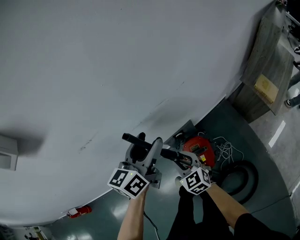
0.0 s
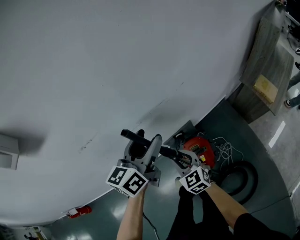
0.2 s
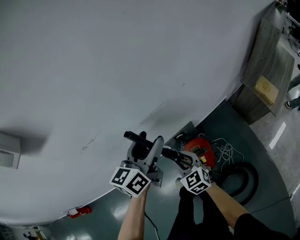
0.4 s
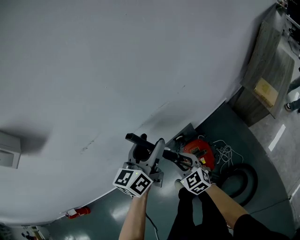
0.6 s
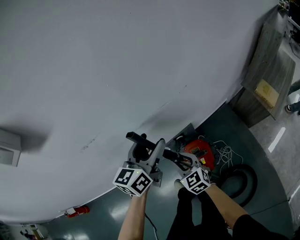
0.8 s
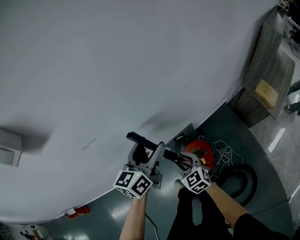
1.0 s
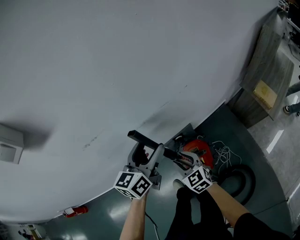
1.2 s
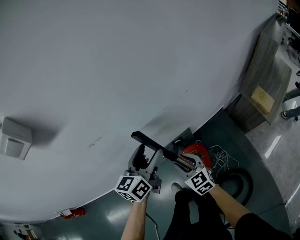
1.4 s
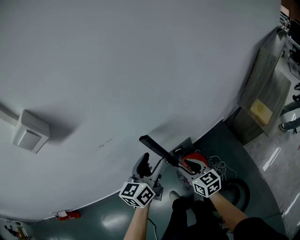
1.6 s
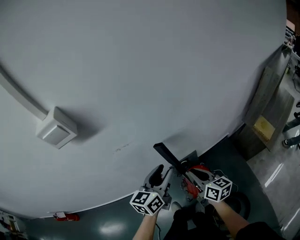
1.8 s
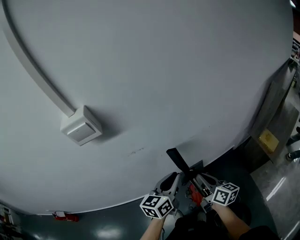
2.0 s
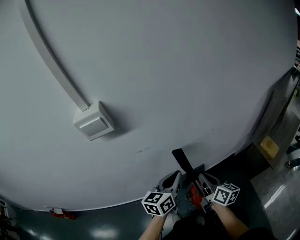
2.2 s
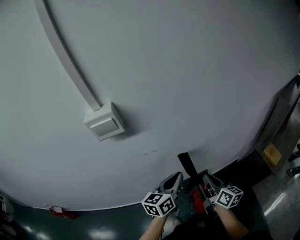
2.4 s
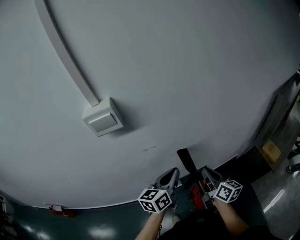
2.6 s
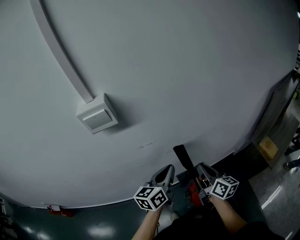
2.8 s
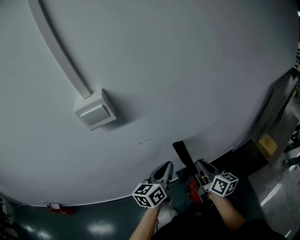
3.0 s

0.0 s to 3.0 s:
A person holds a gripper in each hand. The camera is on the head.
0.0 to 1.6 s: The right gripper shifts about 10 cm upward, and swivels approximately 20 degrees. The left gripper ends up roughly 5 cm from where it was.
1.6 to 3.0 s: The right gripper travels upward by about 15 cm, turns by about 30 degrees, and closes. The left gripper moves to the left and upward, some 10 cm, and closes.

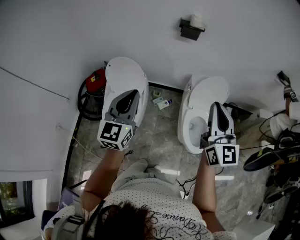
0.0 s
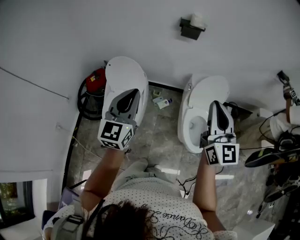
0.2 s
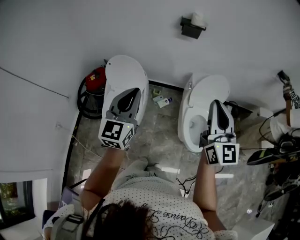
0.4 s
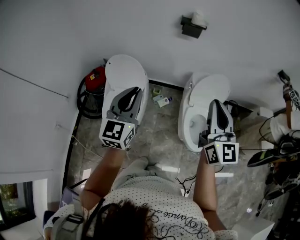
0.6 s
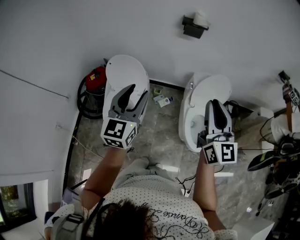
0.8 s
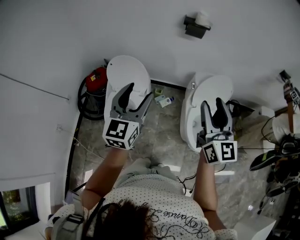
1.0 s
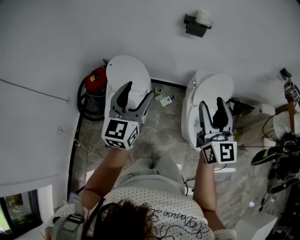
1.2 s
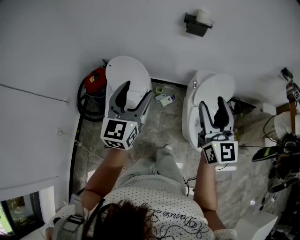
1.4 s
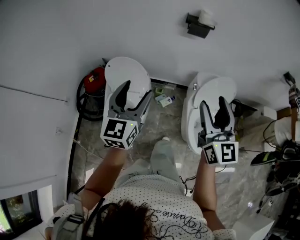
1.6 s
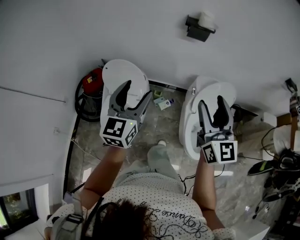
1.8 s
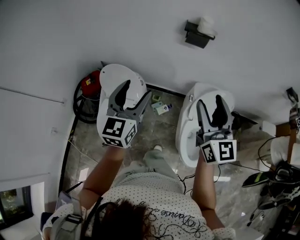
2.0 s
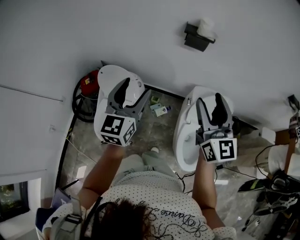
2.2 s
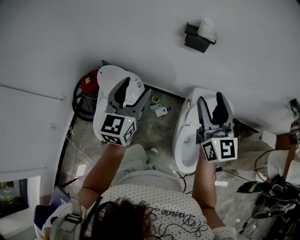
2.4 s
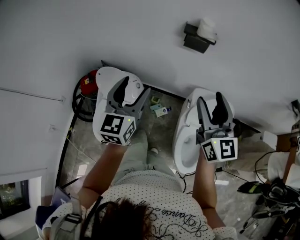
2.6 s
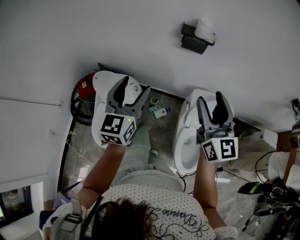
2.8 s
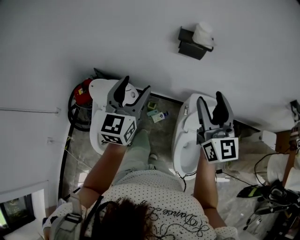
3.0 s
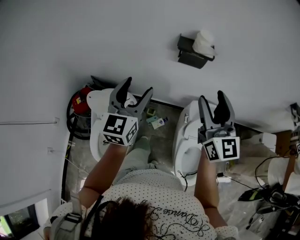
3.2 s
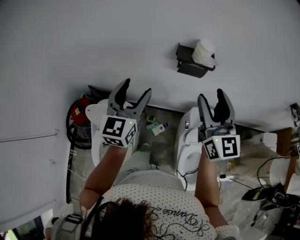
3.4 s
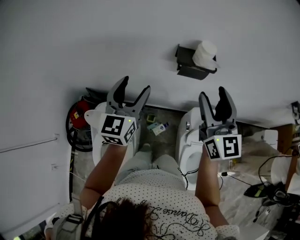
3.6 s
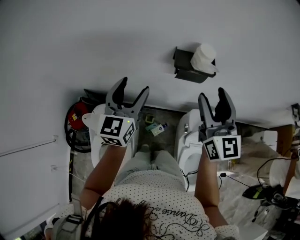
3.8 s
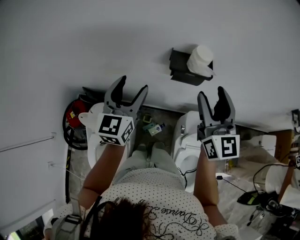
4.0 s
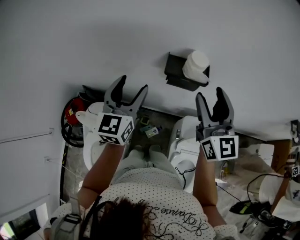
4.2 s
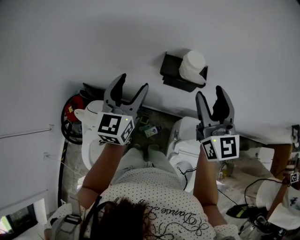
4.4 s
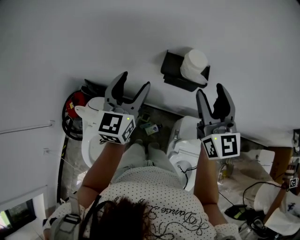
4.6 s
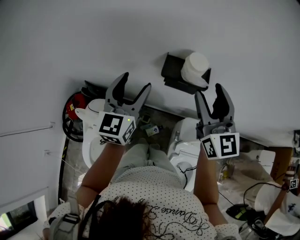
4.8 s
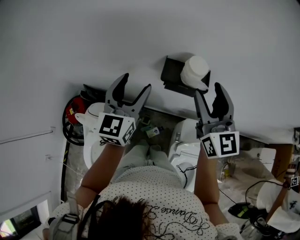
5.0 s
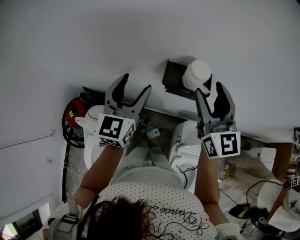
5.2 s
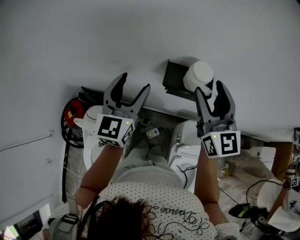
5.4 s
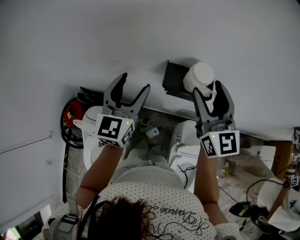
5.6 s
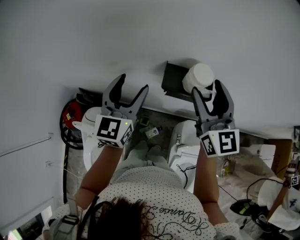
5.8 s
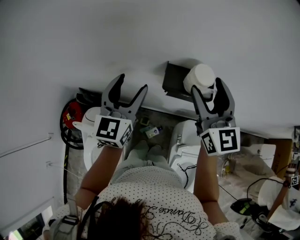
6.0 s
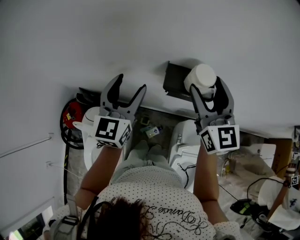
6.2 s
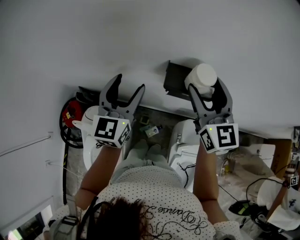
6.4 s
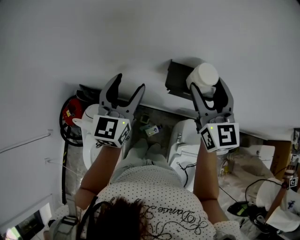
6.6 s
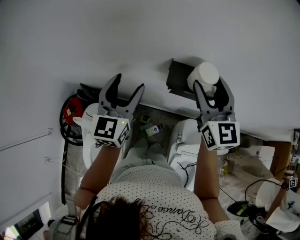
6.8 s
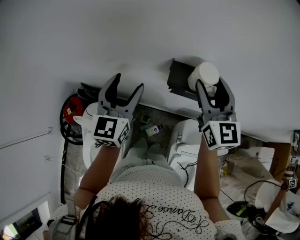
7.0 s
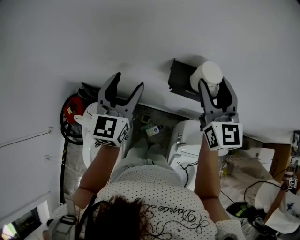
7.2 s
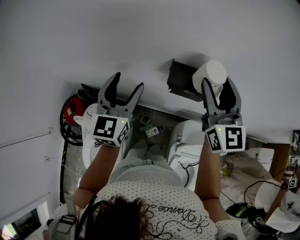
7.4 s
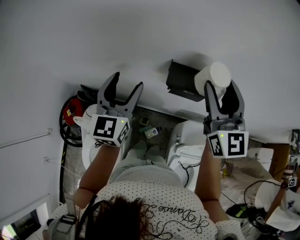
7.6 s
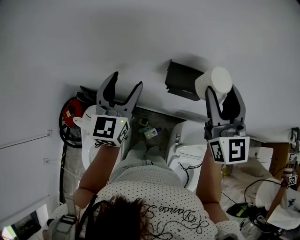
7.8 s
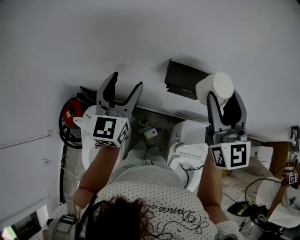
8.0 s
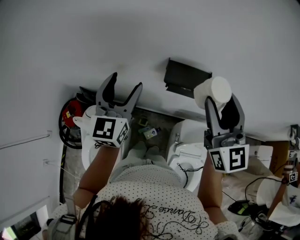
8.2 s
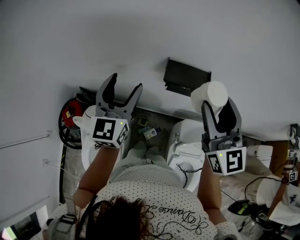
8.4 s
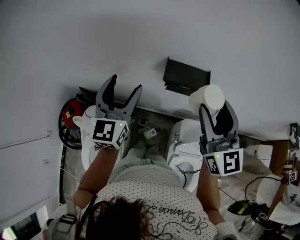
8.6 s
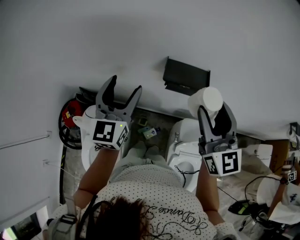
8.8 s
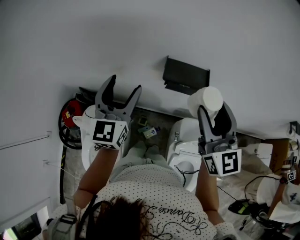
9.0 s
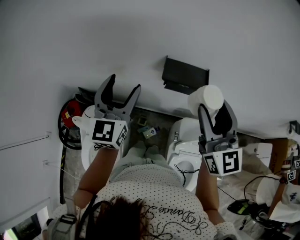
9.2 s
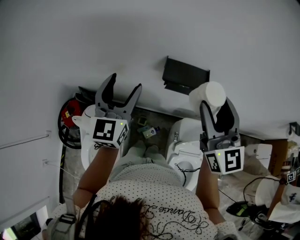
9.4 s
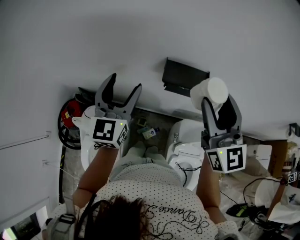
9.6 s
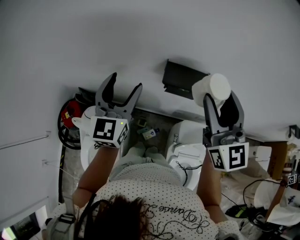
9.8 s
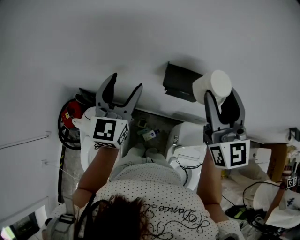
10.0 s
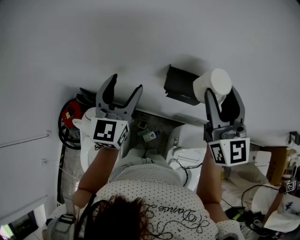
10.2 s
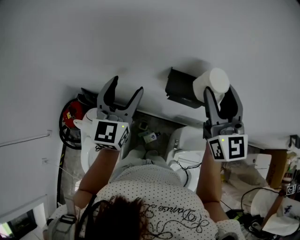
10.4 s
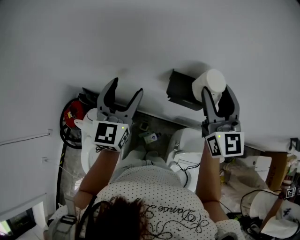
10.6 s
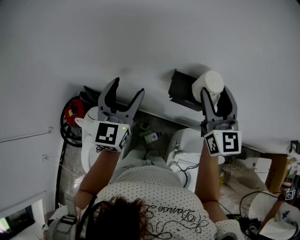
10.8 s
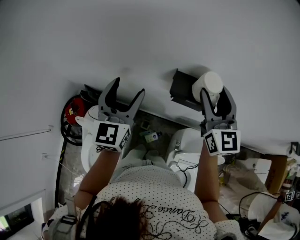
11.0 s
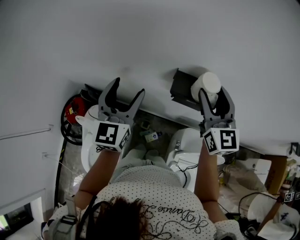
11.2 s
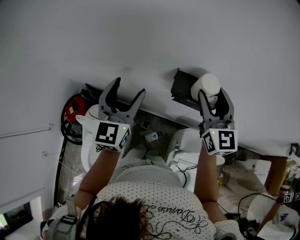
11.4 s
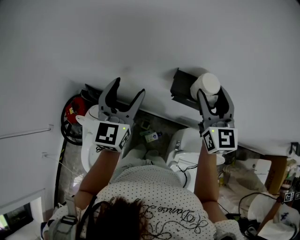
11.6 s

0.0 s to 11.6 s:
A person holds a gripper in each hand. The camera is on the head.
0.0 to 1.4 s: The left gripper is displaced forward by some 10 cm, and opens up. Meanwhile the right gripper goes about 10 cm to the left and forward, and opens up.
1.4 to 2.8 s: Both grippers move forward and to the right, roughly 25 cm.
2.8 to 4.4 s: Both grippers travel together forward, some 25 cm.
4.4 to 5.8 s: Both grippers travel together forward, some 5 cm.
5.8 to 7.2 s: There are only small adjustments of the grippers.
7.2 to 8.8 s: The right gripper heads backward, covering approximately 10 cm.
8.8 to 10.2 s: The right gripper moves forward, roughly 5 cm.
10.2 to 11.6 s: The right gripper moves downward and forward, some 10 cm.

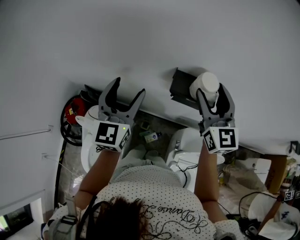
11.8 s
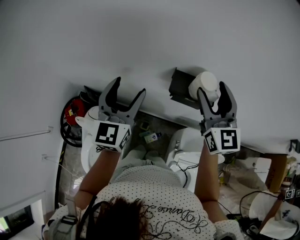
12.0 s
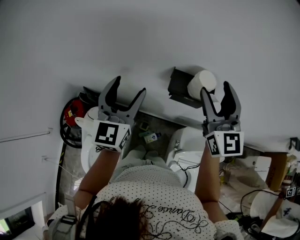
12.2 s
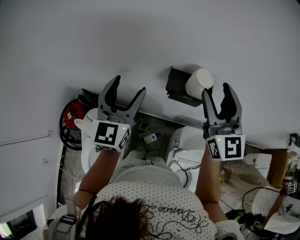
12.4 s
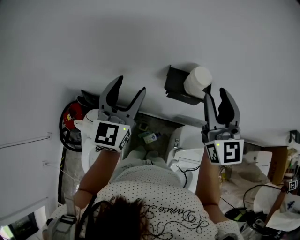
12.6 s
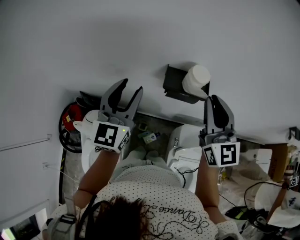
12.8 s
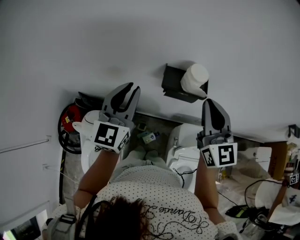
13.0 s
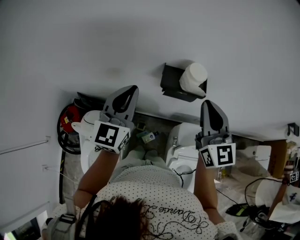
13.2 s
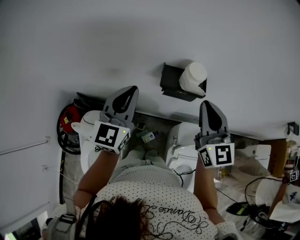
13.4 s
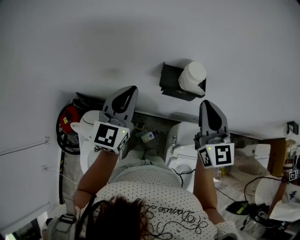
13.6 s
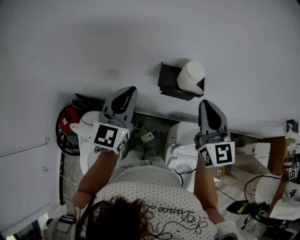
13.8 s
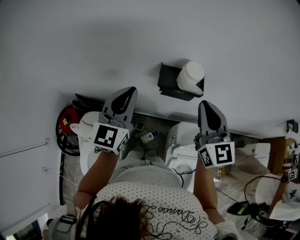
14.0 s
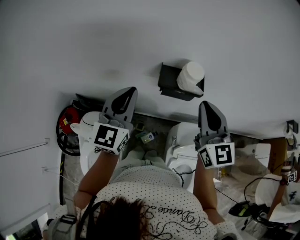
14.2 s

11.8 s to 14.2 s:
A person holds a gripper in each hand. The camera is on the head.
11.8 to 13.0 s: The left gripper closes. Meanwhile the right gripper is displaced backward by about 10 cm, and closes.
13.0 to 14.2 s: The grippers make only small movements.

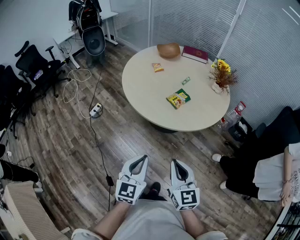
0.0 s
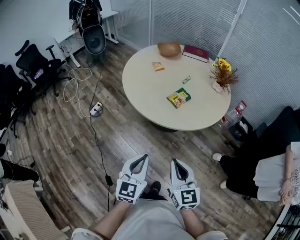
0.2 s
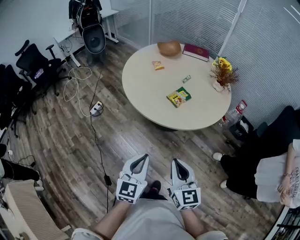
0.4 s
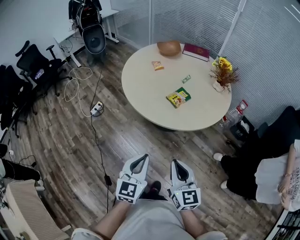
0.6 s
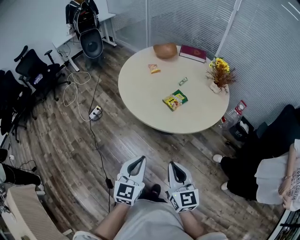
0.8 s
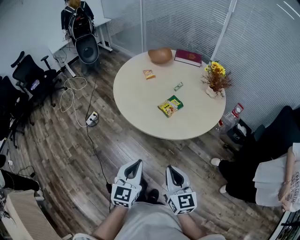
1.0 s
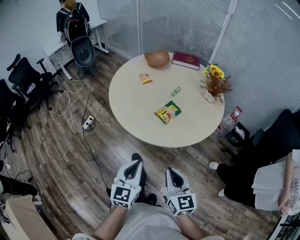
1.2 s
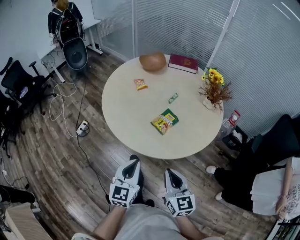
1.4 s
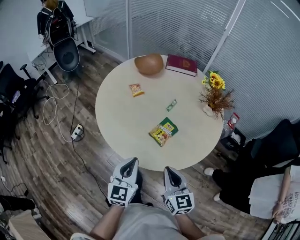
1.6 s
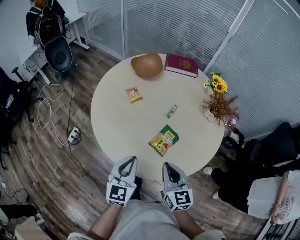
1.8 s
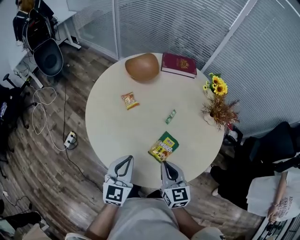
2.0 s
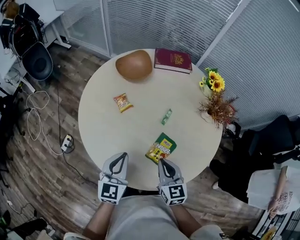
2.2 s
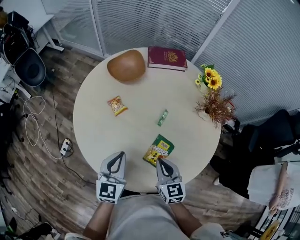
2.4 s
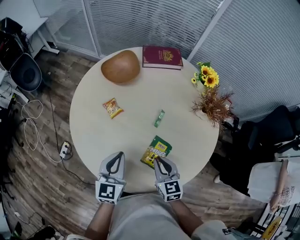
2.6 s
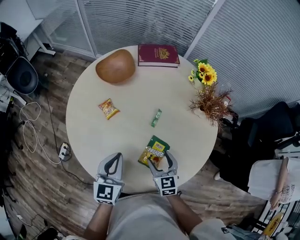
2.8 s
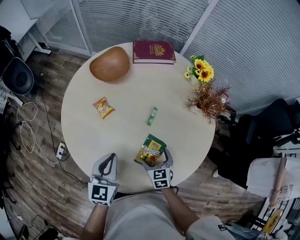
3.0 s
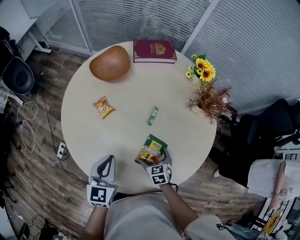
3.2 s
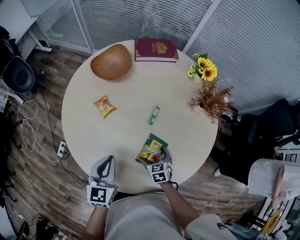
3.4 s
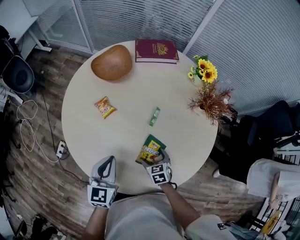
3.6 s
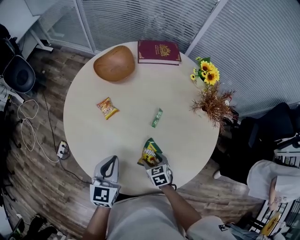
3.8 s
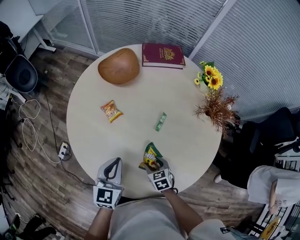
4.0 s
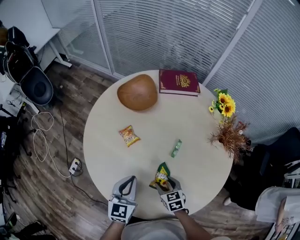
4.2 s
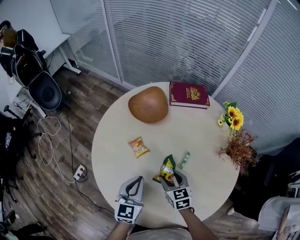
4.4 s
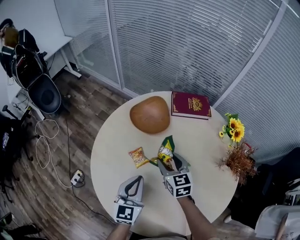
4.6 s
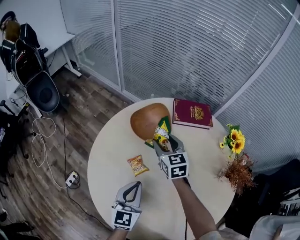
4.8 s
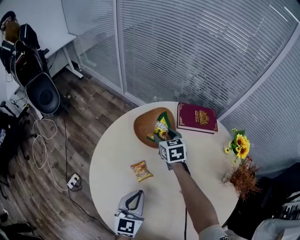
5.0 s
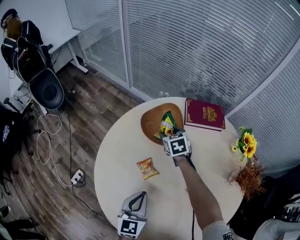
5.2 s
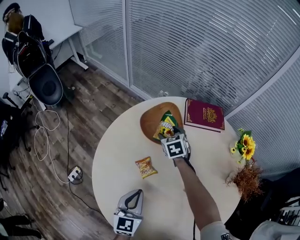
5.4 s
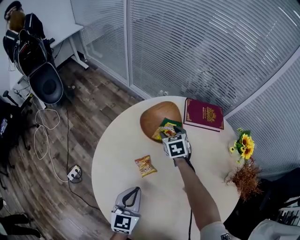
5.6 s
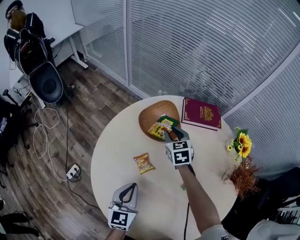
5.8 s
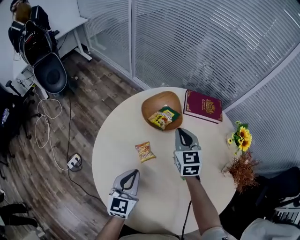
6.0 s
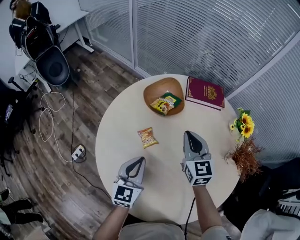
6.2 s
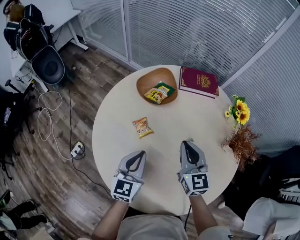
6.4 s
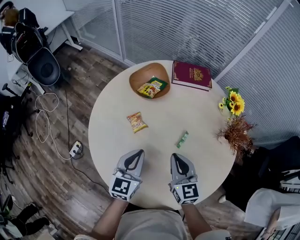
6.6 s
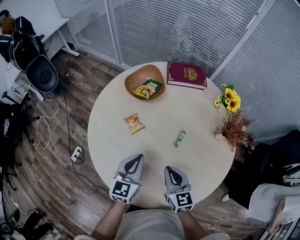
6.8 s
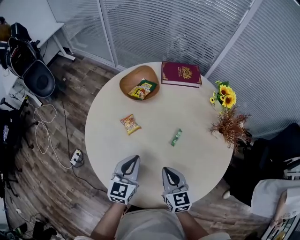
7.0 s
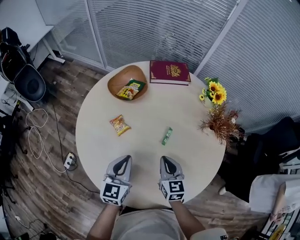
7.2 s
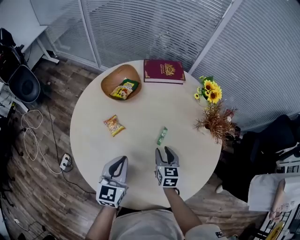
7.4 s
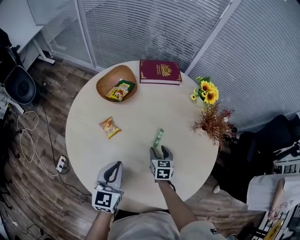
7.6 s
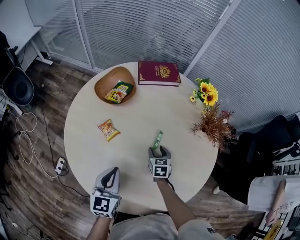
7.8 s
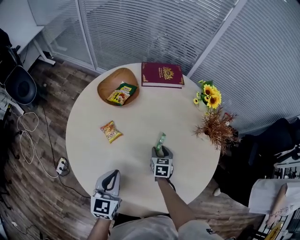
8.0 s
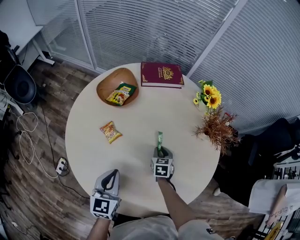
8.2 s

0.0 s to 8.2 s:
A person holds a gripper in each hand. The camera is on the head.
0.0 to 1.6 s: Both grippers travel together forward, roughly 30 cm.
1.6 to 3.2 s: The left gripper goes approximately 25 cm forward, while the right gripper goes about 35 cm downward and forward, angles its fingers downward, by some 30 degrees, and opens its fingers.
3.2 to 5.0 s: The right gripper travels forward by approximately 50 cm, and closes up. The left gripper heads forward, covering some 15 cm.
5.0 to 6.6 s: The left gripper moves backward, approximately 5 cm; the right gripper is displaced backward by approximately 35 cm, and closes up.
6.6 to 8.2 s: The right gripper is displaced downward by approximately 20 cm, and tips its fingers downward by roughly 30 degrees.
